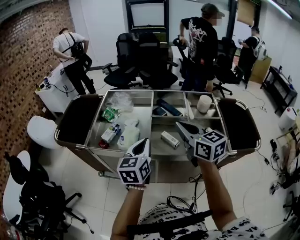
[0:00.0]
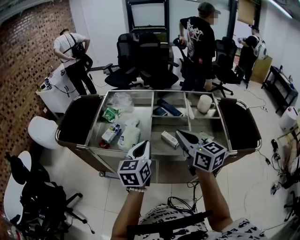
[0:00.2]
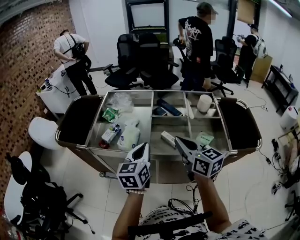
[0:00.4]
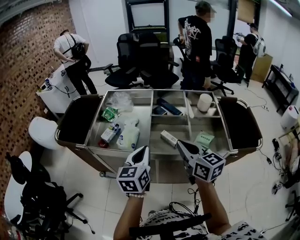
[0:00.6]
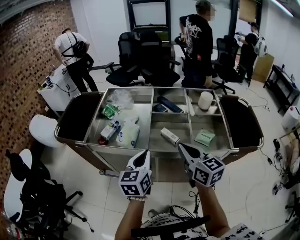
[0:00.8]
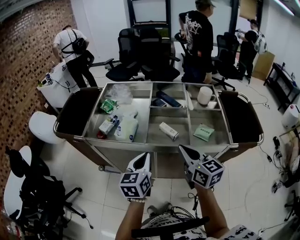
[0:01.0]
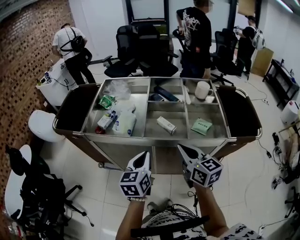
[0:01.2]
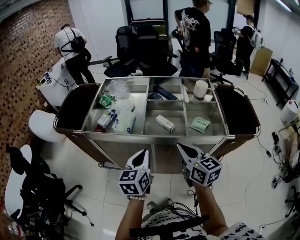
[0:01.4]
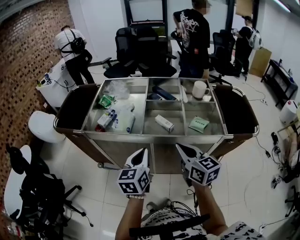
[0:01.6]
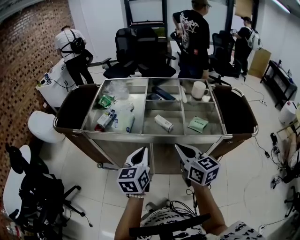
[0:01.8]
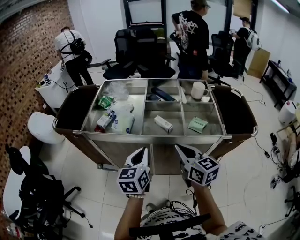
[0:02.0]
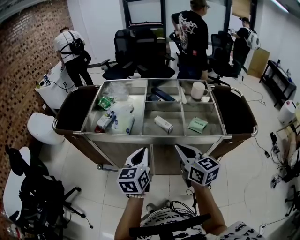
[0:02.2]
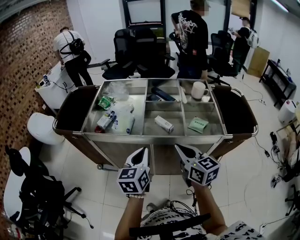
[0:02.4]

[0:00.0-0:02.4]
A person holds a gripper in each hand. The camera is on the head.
0.0 to 1.2 s: The grippers both shift backward and downward by about 15 cm.
1.2 to 2.4 s: The grippers move only a little.

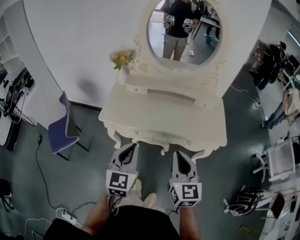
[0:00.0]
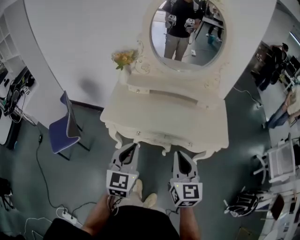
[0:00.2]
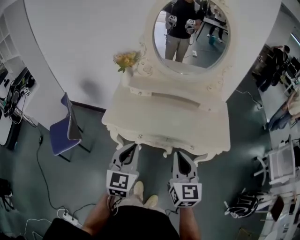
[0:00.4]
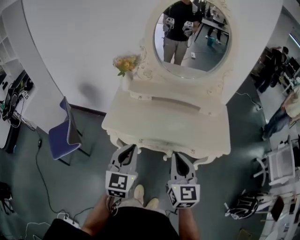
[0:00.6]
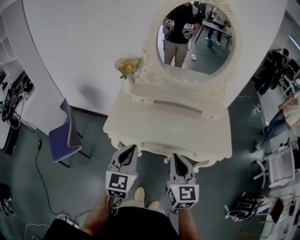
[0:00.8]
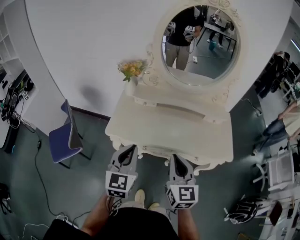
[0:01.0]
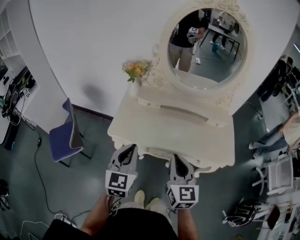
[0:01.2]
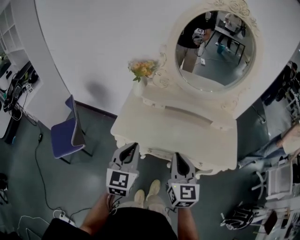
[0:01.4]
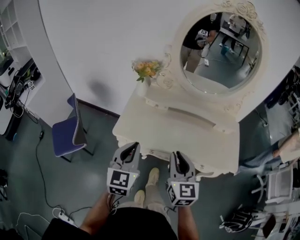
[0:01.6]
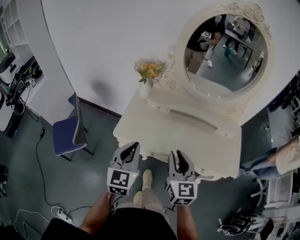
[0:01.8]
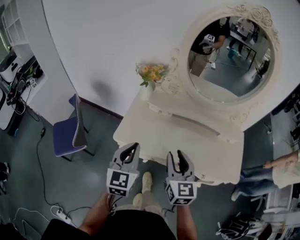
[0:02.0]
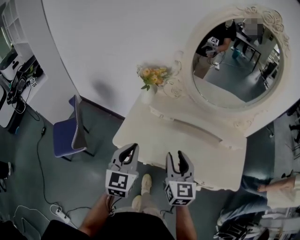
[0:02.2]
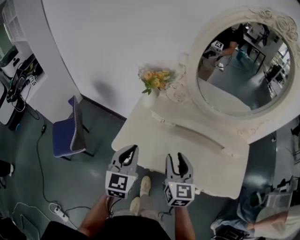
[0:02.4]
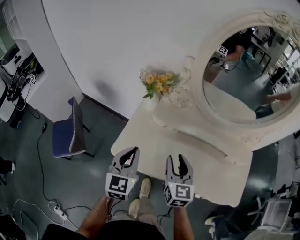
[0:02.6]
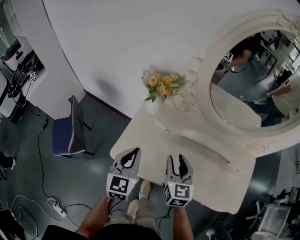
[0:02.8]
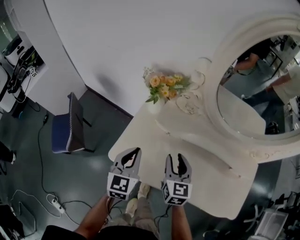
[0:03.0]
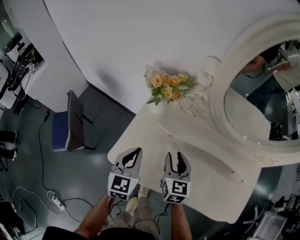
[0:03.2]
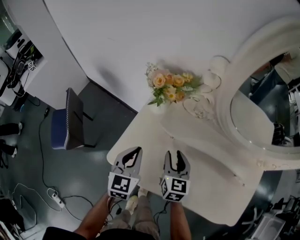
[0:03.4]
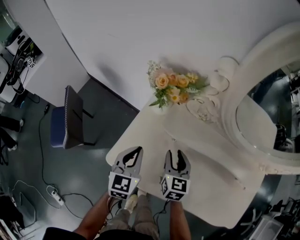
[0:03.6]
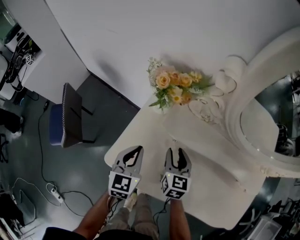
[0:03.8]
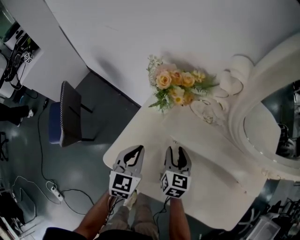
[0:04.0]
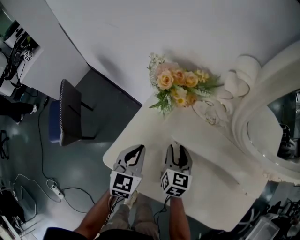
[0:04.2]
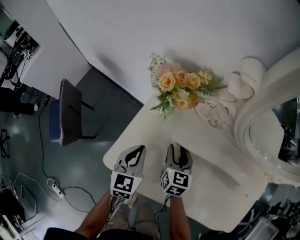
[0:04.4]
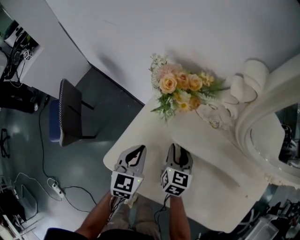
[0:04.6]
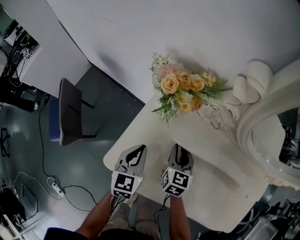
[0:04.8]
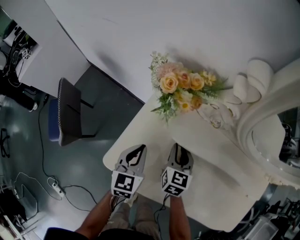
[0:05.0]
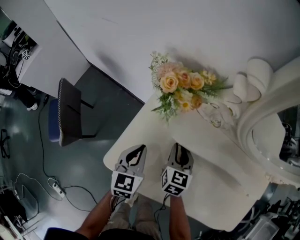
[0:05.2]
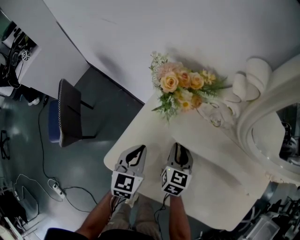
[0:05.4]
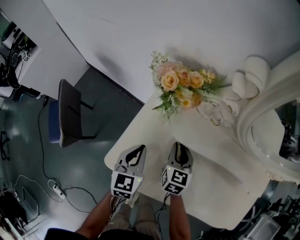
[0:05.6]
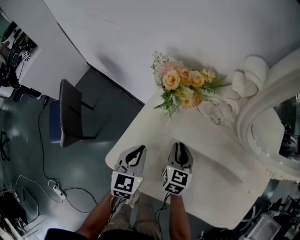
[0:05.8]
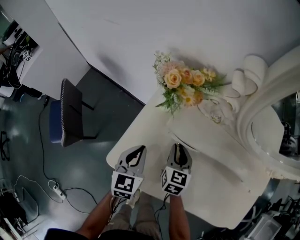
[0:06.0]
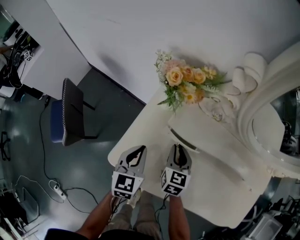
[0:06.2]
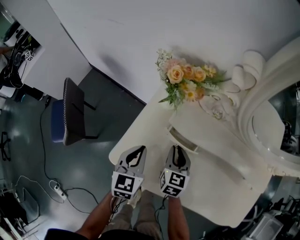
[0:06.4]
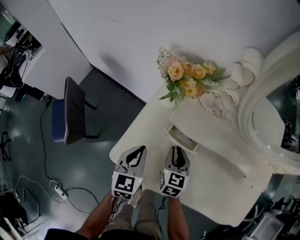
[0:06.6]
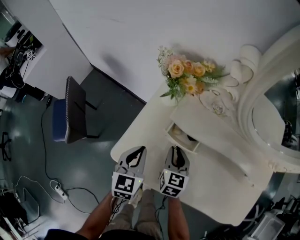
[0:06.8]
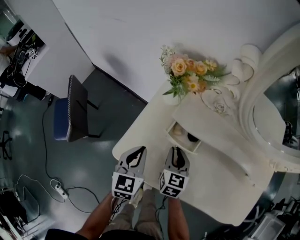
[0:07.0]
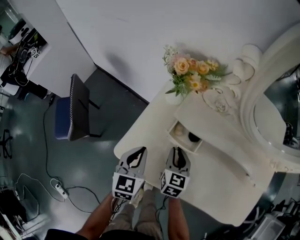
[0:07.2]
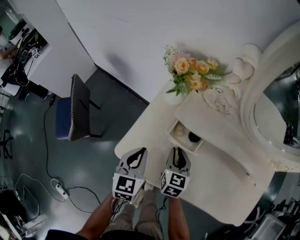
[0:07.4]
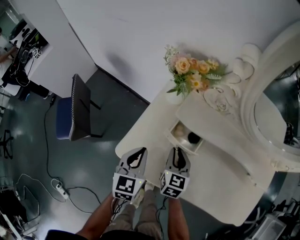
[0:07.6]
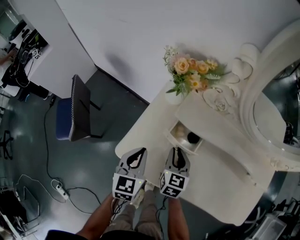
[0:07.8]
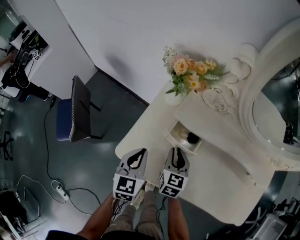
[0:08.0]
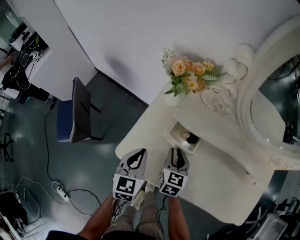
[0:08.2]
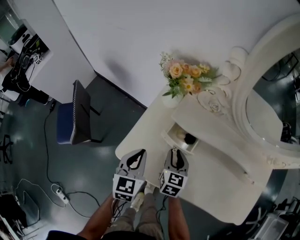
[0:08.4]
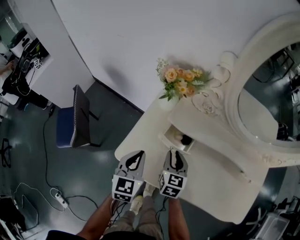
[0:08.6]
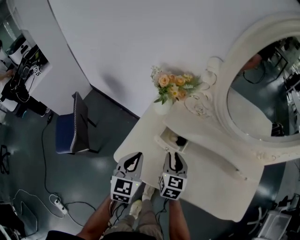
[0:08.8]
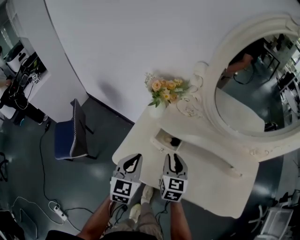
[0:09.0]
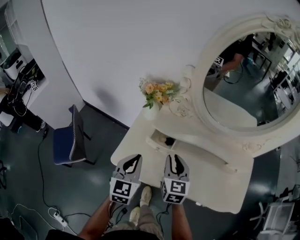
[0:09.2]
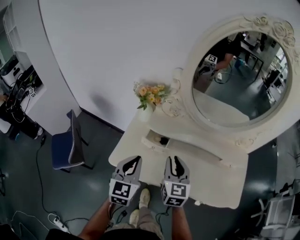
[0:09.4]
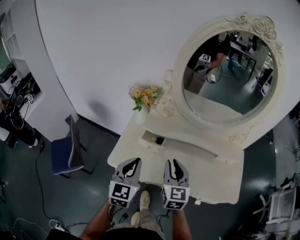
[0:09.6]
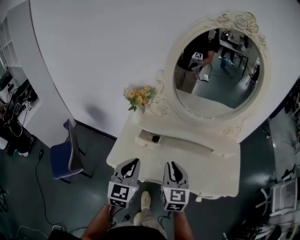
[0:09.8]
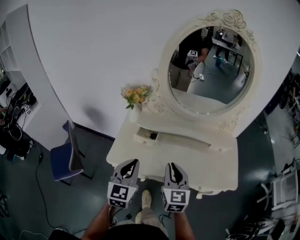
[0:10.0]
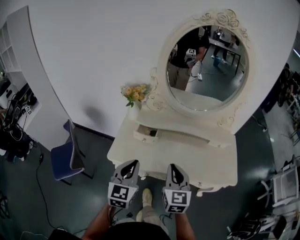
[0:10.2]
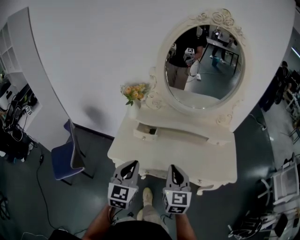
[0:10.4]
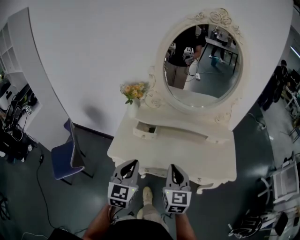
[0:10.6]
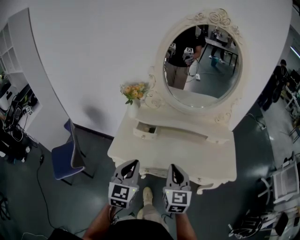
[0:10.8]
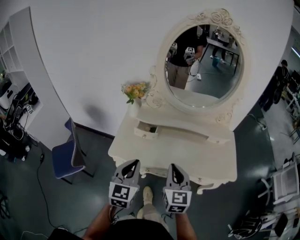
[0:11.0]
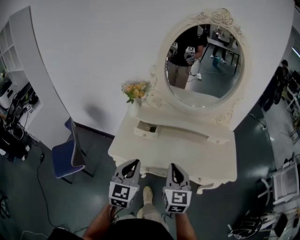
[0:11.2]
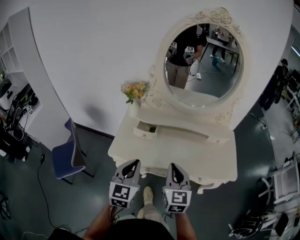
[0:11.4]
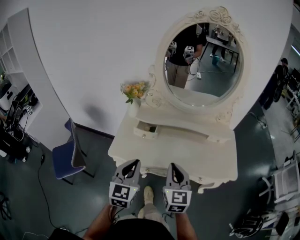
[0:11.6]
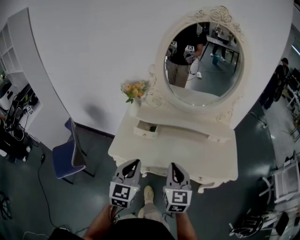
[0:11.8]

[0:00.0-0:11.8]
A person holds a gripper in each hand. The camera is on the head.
0.0 to 1.4 s: Both grippers move forward and to the left, about 20 cm.
1.4 to 3.0 s: Both grippers move forward and downward, approximately 30 cm. The right gripper opens.
3.0 to 4.4 s: Both grippers move downward and forward, some 15 cm.
4.4 to 6.0 s: The right gripper closes up.
6.0 to 7.4 s: Both grippers move backward, roughly 5 cm.
7.4 to 8.8 s: The grippers both shift upward by approximately 10 cm.
8.8 to 10.4 s: The grippers both shift backward, upward and to the right by roughly 30 cm. The right gripper rotates roughly 20 degrees, and closes up. Meanwhile the left gripper swivels roughly 20 degrees.
10.4 to 11.8 s: The two grippers keep their place.

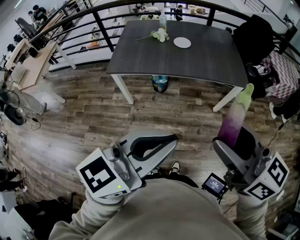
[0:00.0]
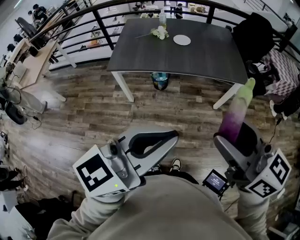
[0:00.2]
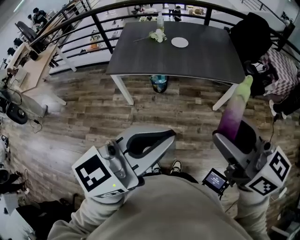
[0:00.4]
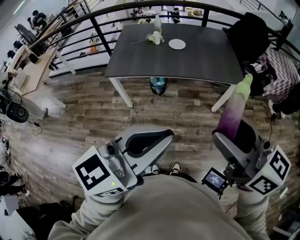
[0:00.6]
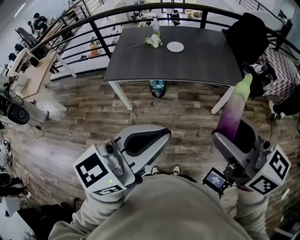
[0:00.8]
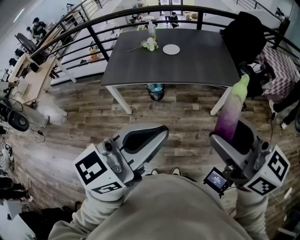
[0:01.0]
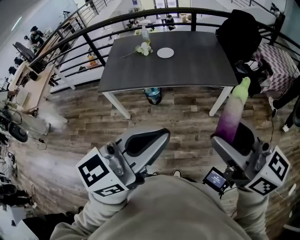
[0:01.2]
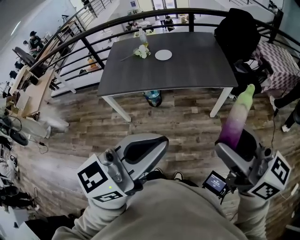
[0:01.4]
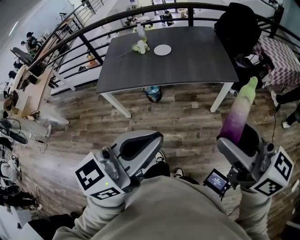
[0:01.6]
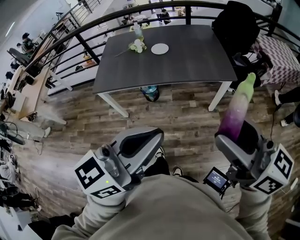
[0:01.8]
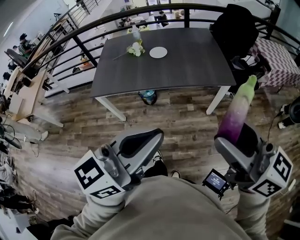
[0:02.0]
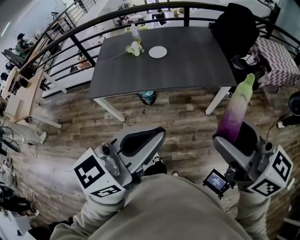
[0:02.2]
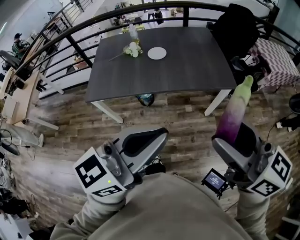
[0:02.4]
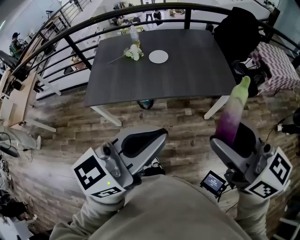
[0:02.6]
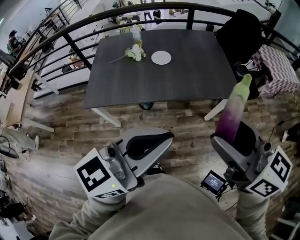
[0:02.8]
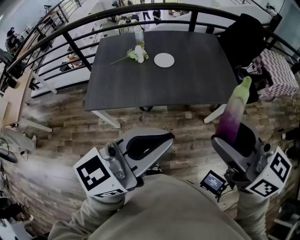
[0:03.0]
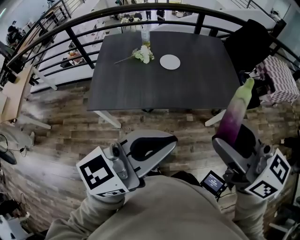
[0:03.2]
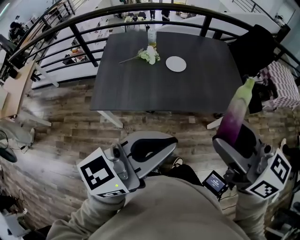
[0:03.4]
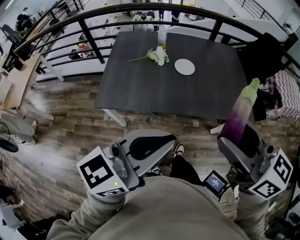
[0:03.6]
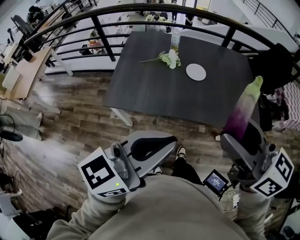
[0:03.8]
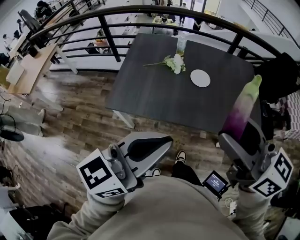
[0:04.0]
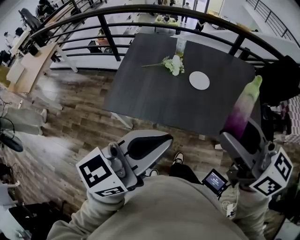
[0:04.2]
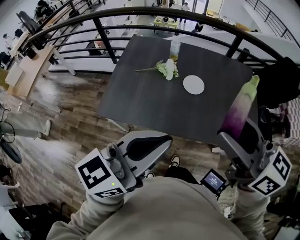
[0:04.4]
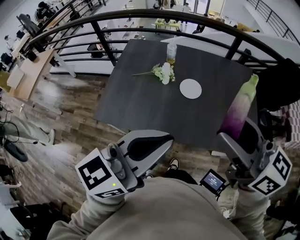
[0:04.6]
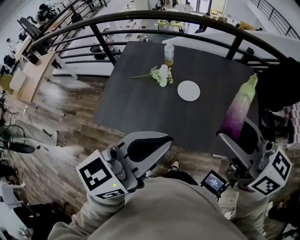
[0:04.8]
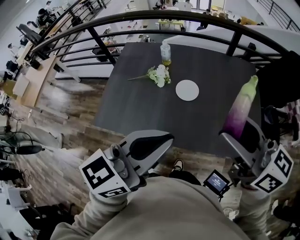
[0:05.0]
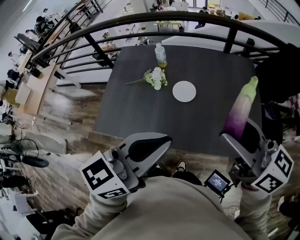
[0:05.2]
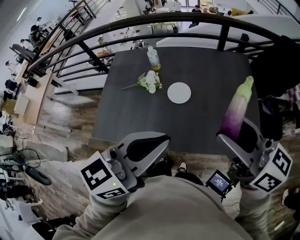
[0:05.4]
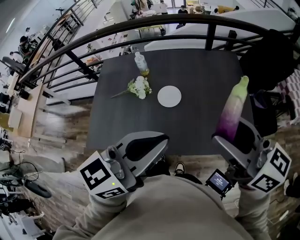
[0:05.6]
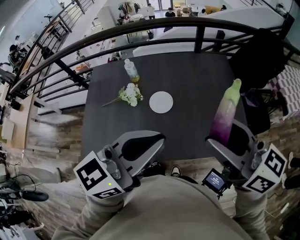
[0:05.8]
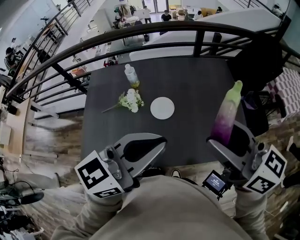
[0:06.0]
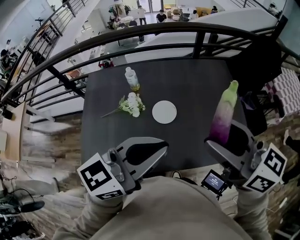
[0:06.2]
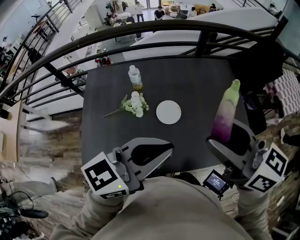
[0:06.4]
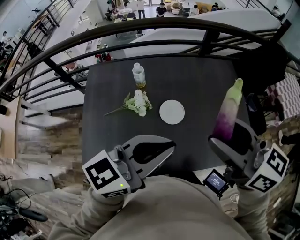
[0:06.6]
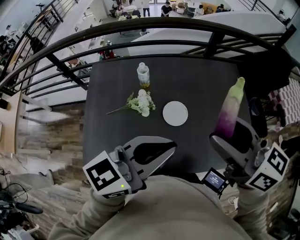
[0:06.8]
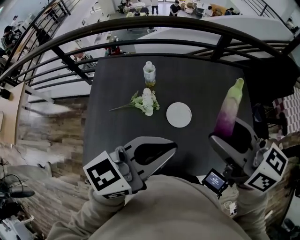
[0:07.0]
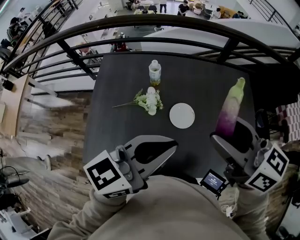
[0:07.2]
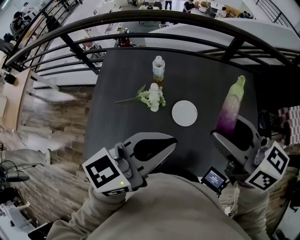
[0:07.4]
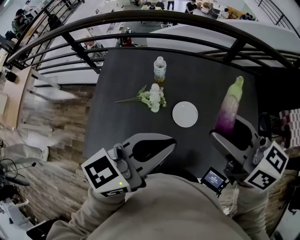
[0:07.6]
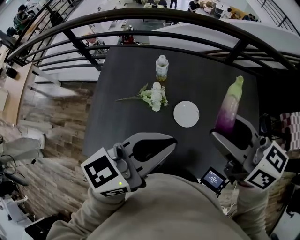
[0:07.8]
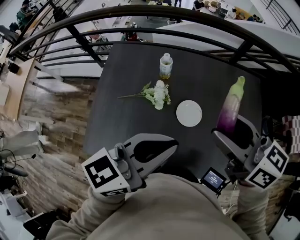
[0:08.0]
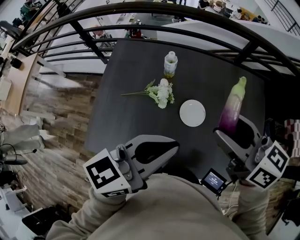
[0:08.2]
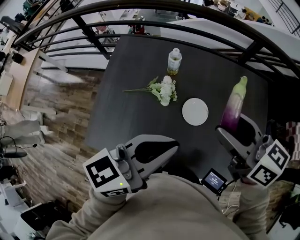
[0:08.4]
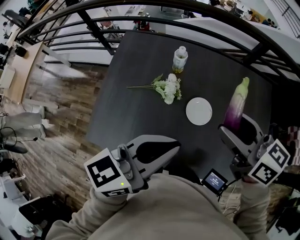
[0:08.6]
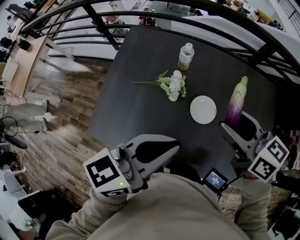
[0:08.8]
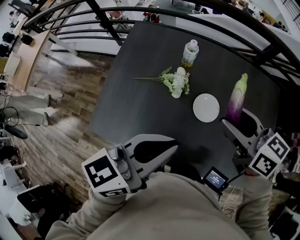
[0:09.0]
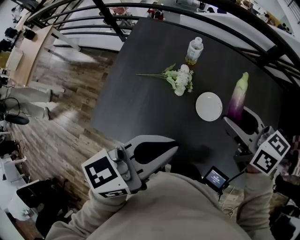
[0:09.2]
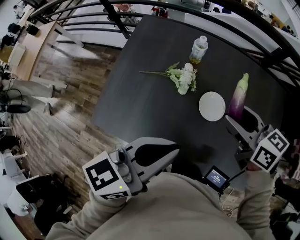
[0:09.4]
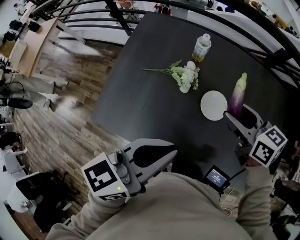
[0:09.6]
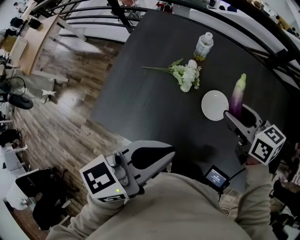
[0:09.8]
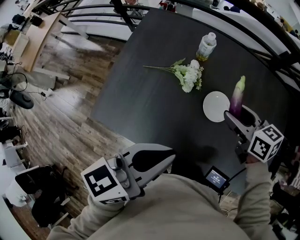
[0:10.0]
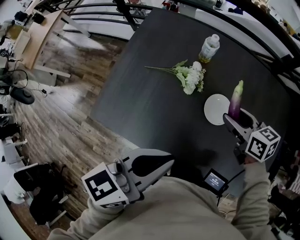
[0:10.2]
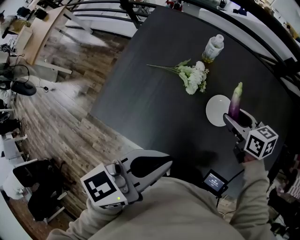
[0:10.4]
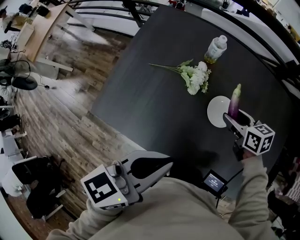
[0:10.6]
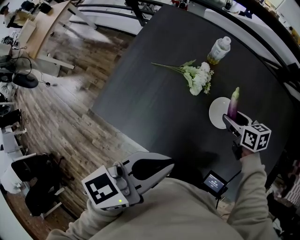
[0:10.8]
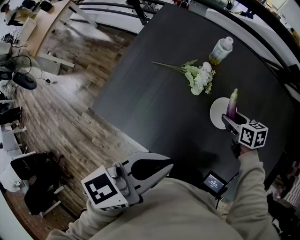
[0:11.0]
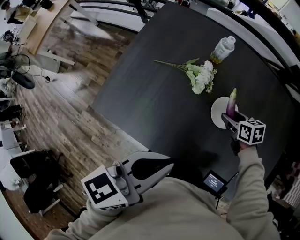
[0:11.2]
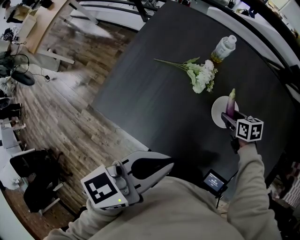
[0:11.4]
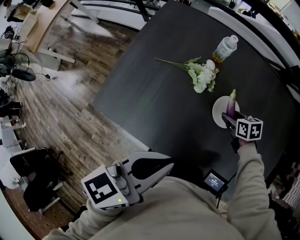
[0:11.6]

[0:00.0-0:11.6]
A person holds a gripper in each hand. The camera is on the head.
0.0 to 1.4 s: Both grippers move to the right, about 10 cm.
1.4 to 2.8 s: The two grippers go roughly 20 cm forward and to the left.
2.8 to 4.4 s: The right gripper goes about 25 cm forward; the left gripper goes approximately 25 cm forward and to the left.
4.4 to 5.8 s: The right gripper shifts about 20 cm to the right and forward. Meanwhile the left gripper shifts approximately 20 cm forward and to the right.
5.8 to 7.2 s: Both grippers travel together to the left and forward, approximately 20 cm.
7.2 to 8.8 s: The left gripper ends up some 5 cm from where it was. Meanwhile the right gripper moves downward and forward, roughly 10 cm.
8.8 to 10.2 s: The right gripper travels downward by some 15 cm, while the left gripper heads downward, covering approximately 5 cm.
10.2 to 11.6 s: The right gripper travels downward by some 15 cm, and rotates some 20 degrees.
